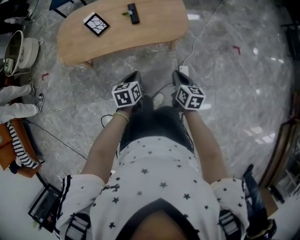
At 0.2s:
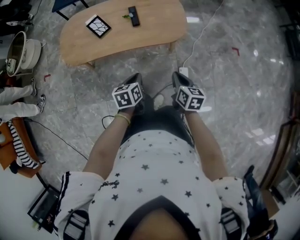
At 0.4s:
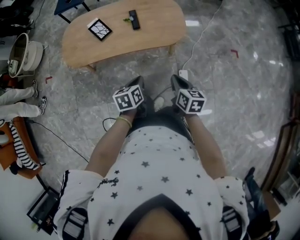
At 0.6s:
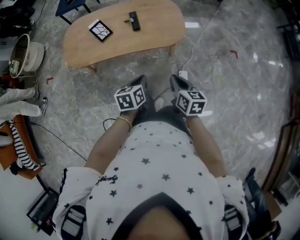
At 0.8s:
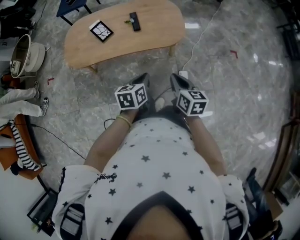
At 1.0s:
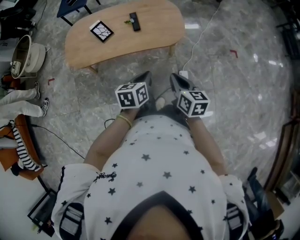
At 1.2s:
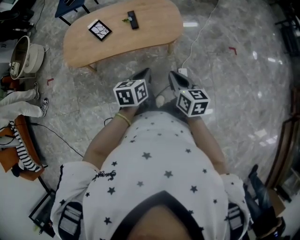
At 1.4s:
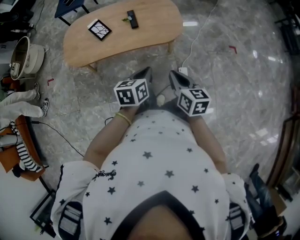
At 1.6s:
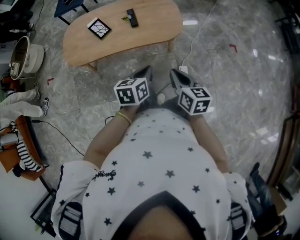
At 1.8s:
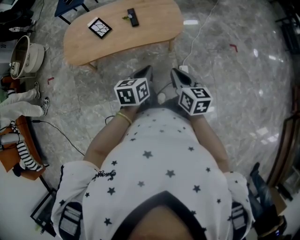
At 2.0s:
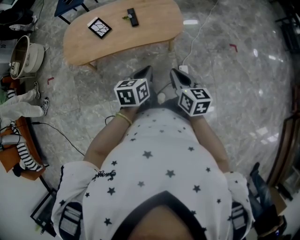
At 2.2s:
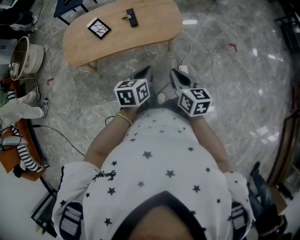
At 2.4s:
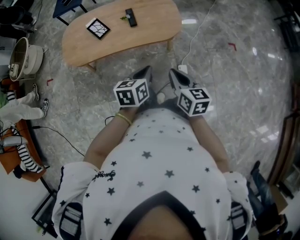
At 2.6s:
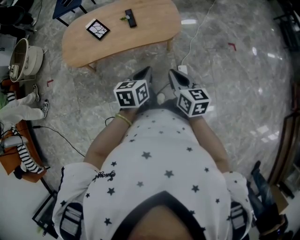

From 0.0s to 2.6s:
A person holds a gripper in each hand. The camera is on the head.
From 0.0s to 1.2s: The left gripper shifts roughly 15 cm upward and to the right; the right gripper moves upward, approximately 15 cm.
From 1.2s to 2.6s: The grippers move only a little.

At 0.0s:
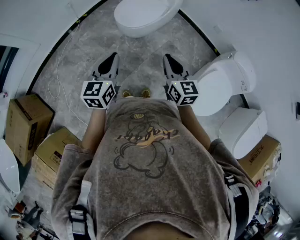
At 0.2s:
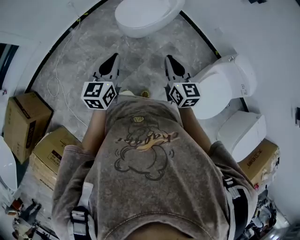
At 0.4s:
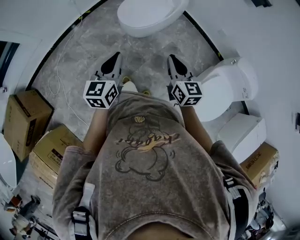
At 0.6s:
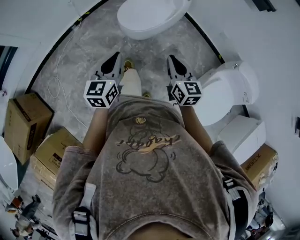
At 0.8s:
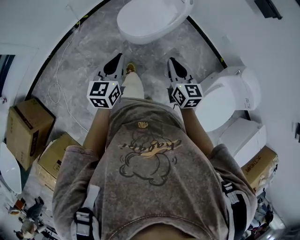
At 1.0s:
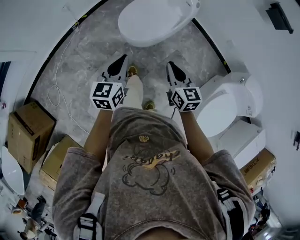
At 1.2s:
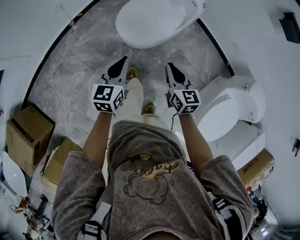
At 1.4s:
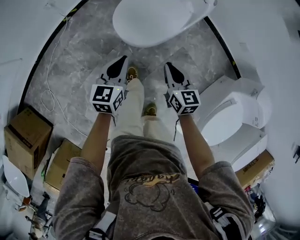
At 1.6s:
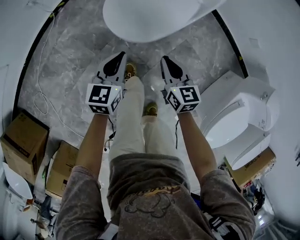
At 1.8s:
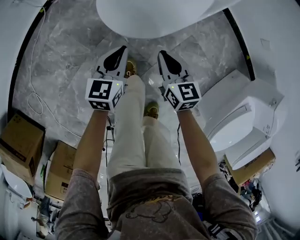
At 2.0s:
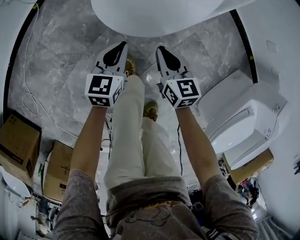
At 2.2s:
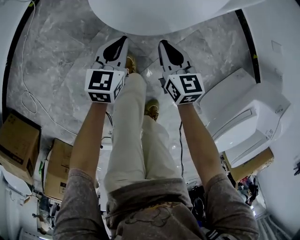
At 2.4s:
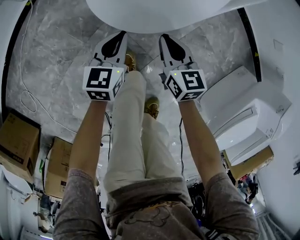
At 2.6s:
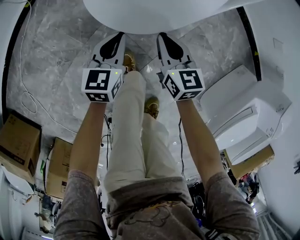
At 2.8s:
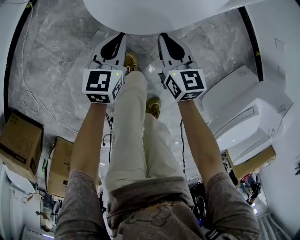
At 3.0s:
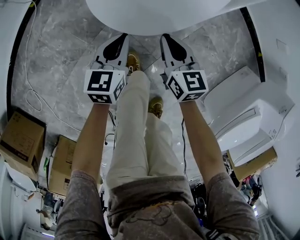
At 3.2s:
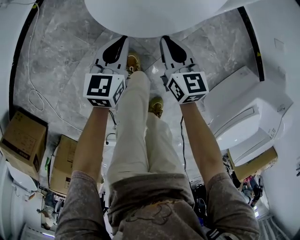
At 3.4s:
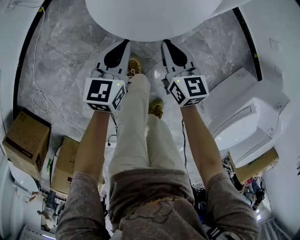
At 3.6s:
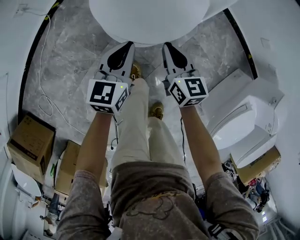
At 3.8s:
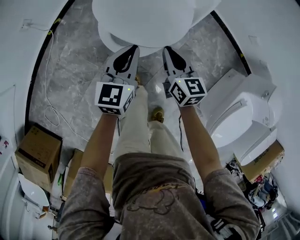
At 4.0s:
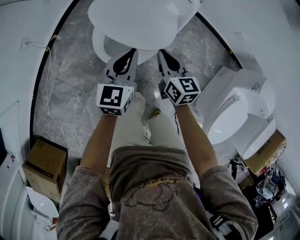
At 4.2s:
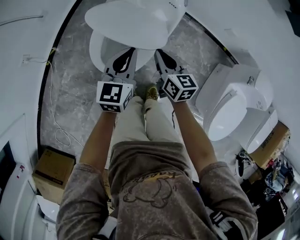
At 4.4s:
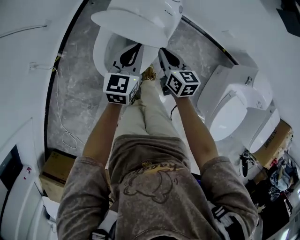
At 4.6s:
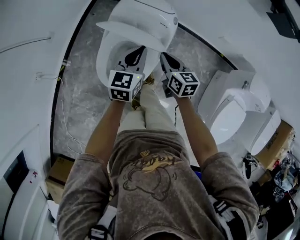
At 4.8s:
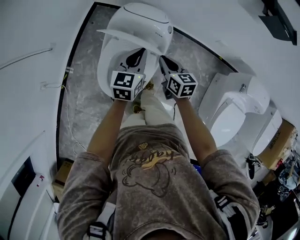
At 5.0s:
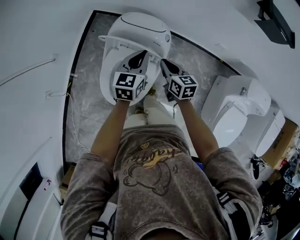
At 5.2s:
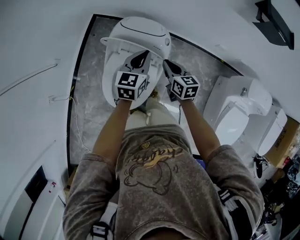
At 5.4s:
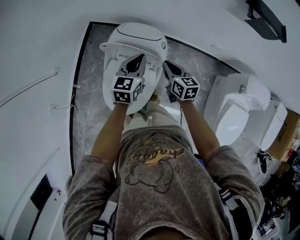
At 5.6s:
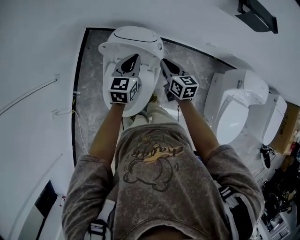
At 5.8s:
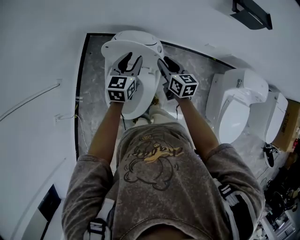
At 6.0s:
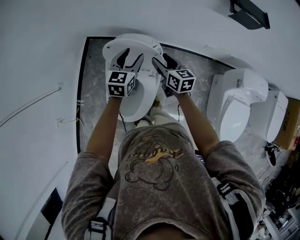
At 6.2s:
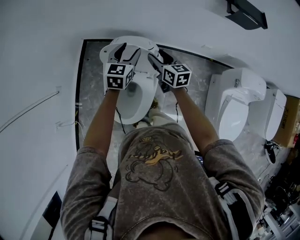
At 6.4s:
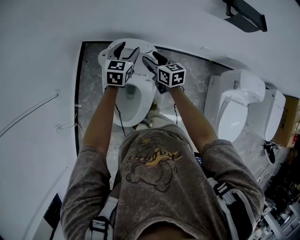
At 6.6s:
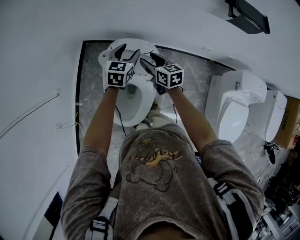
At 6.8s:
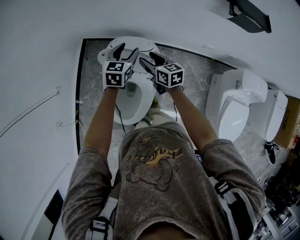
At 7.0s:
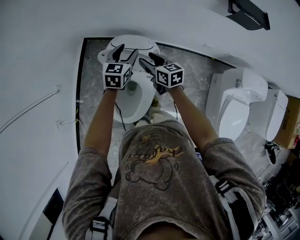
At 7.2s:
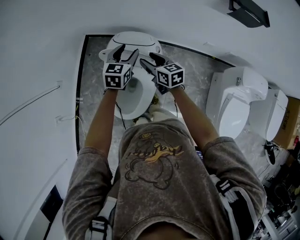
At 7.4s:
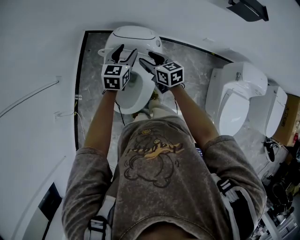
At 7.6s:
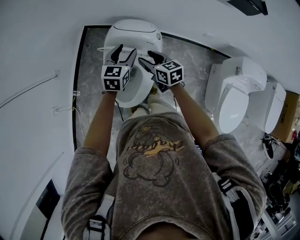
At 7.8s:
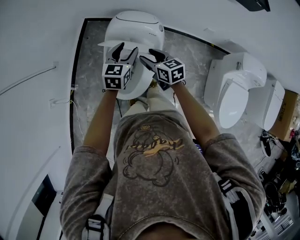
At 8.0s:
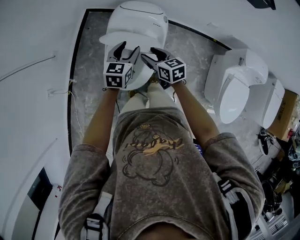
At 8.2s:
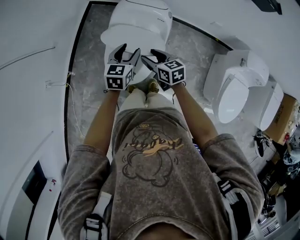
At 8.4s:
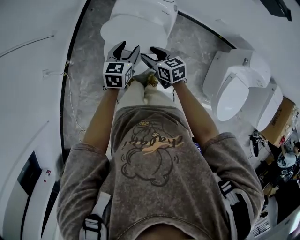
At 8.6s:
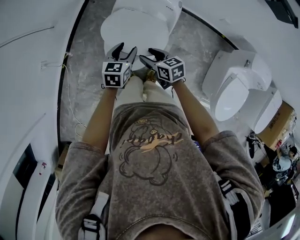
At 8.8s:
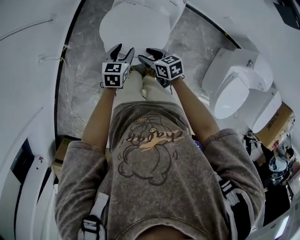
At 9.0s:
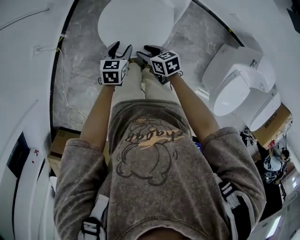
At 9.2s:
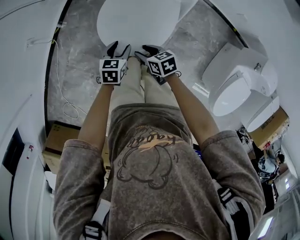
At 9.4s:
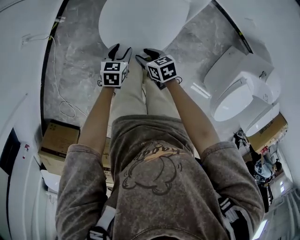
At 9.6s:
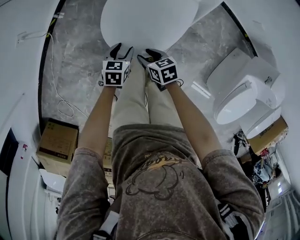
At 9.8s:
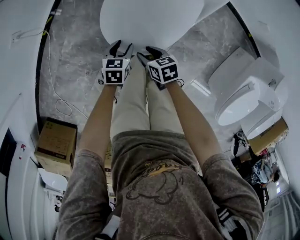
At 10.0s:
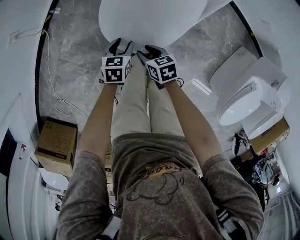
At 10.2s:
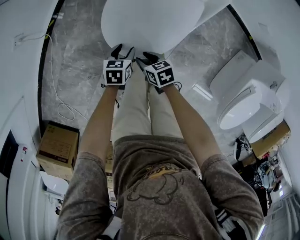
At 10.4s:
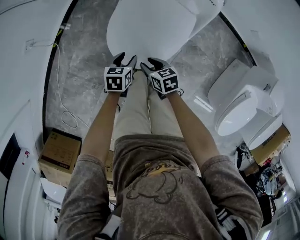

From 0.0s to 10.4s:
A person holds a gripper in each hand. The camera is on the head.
From 0.0s to 1.4s: The two grippers go some 40 cm forward and downward.
From 1.4s to 3.0s: The two grippers go some 25 cm downward.
From 3.0s to 4.4s: Both grippers move upward, forward and to the right, some 35 cm. The left gripper swivels approximately 30 degrees, while the right gripper turns by about 20 degrees.
From 4.4s to 6.0s: The grippers both shift forward and upward by roughly 20 cm. The left gripper opens. Meanwhile the right gripper opens up.
From 6.0s to 7.4s: The right gripper heads to the left, covering some 5 cm. Meanwhile the left gripper goes forward and returns, about 5 cm each way.
From 7.4s to 9.0s: Both grippers travel together backward, downward and to the left, about 35 cm. The left gripper changes its angle by some 30 degrees. Meanwhile the right gripper turns by approximately 30 degrees.
From 9.0s to 10.4s: The two grippers go approximately 15 cm downward.

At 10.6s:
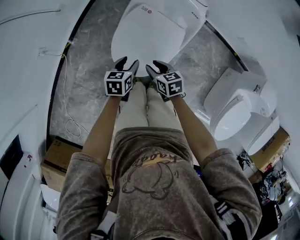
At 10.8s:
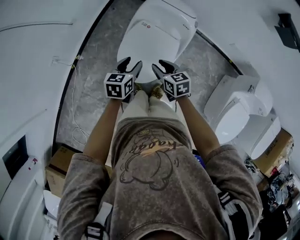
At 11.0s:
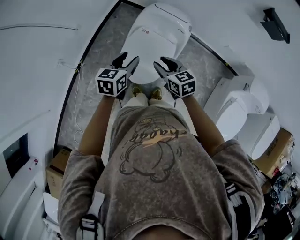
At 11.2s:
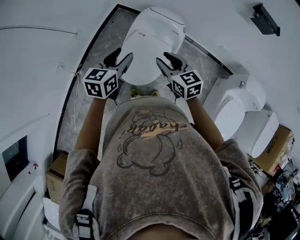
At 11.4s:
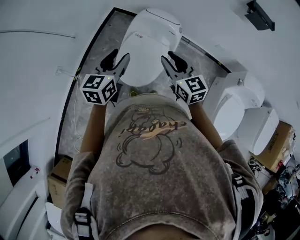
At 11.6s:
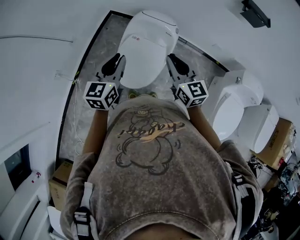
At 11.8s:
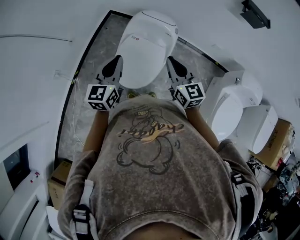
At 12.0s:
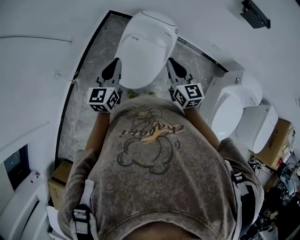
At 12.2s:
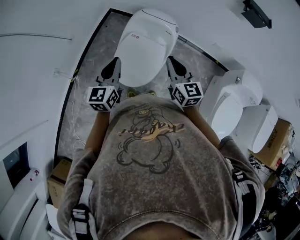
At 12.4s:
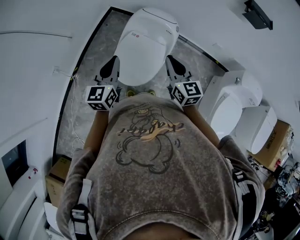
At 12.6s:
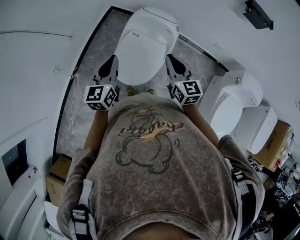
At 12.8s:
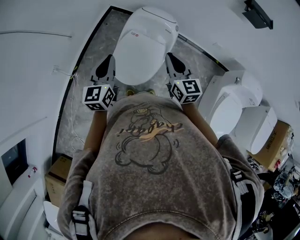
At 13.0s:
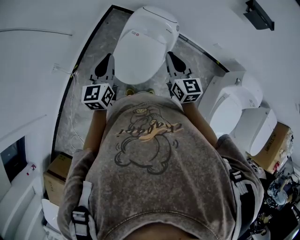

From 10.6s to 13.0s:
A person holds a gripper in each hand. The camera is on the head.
From 10.6s to 11.8s: Both grippers move upward, approximately 35 cm. The left gripper points its fingers roughly 40 degrees further upward, and closes up. The right gripper angles its fingers upward, by about 30 degrees, and closes its fingers.
From 11.8s to 13.0s: The grippers stay close to where they were, moving slightly.

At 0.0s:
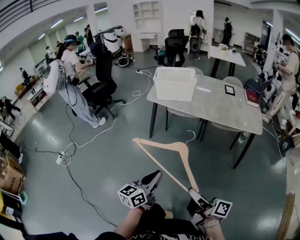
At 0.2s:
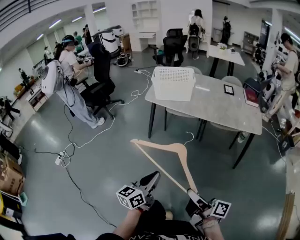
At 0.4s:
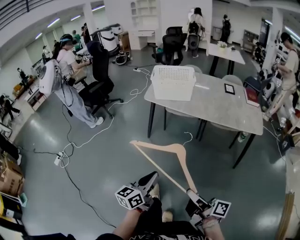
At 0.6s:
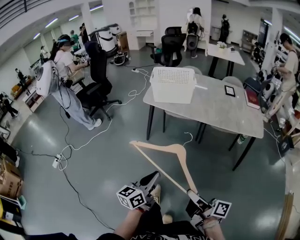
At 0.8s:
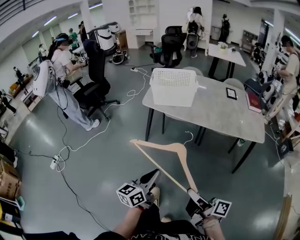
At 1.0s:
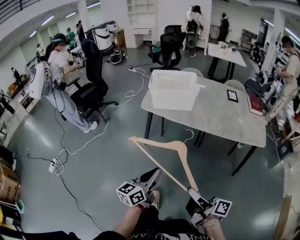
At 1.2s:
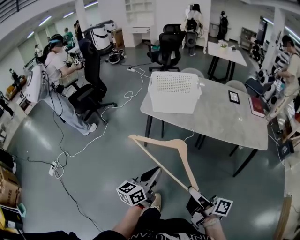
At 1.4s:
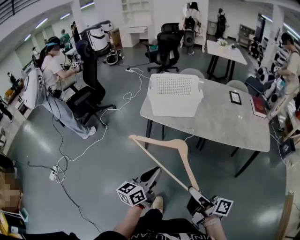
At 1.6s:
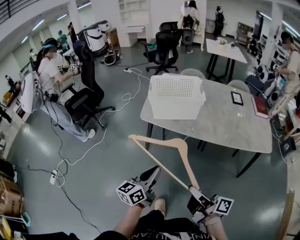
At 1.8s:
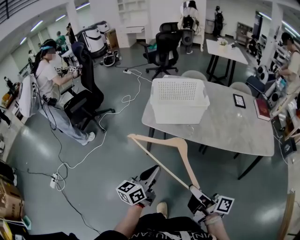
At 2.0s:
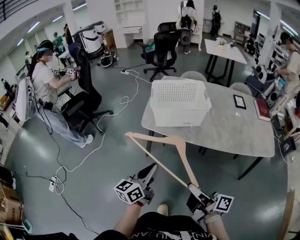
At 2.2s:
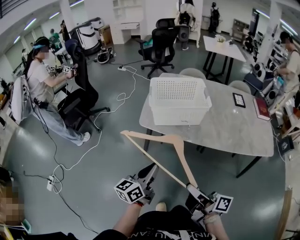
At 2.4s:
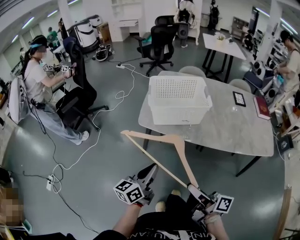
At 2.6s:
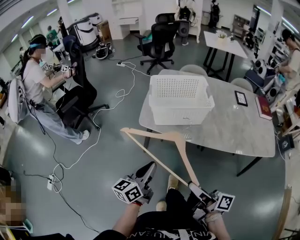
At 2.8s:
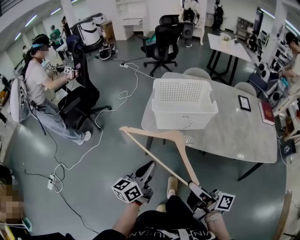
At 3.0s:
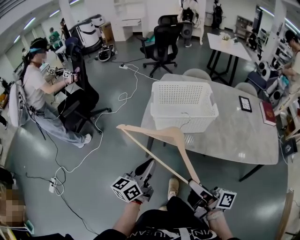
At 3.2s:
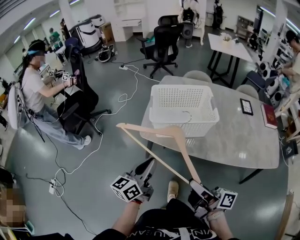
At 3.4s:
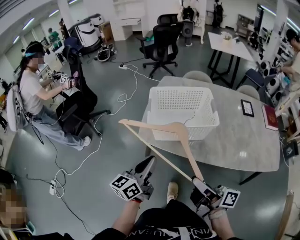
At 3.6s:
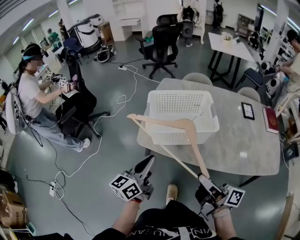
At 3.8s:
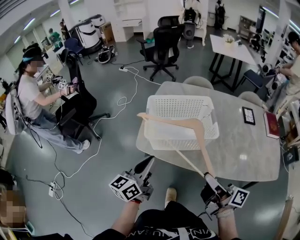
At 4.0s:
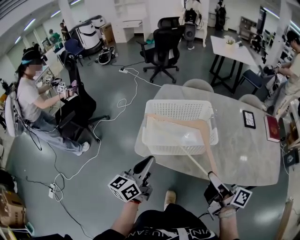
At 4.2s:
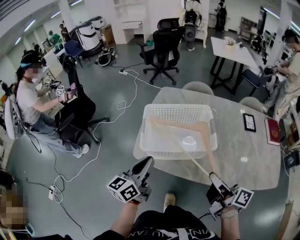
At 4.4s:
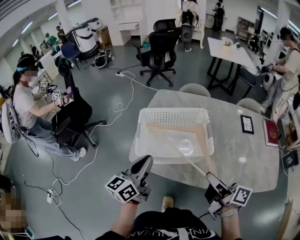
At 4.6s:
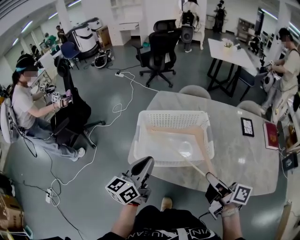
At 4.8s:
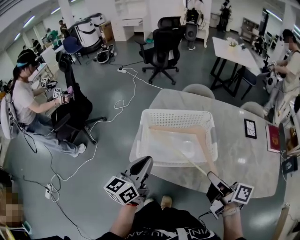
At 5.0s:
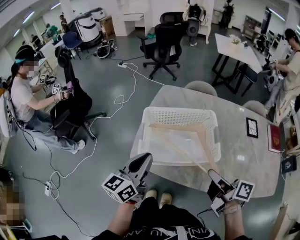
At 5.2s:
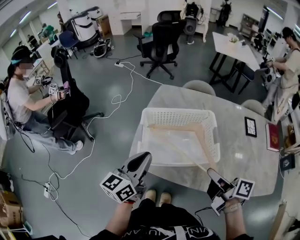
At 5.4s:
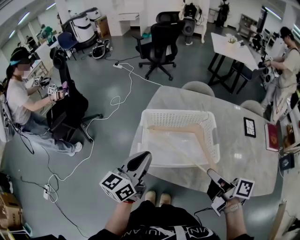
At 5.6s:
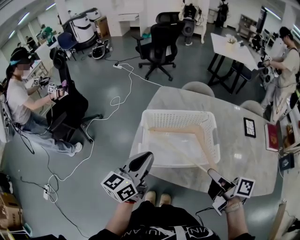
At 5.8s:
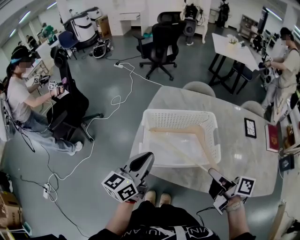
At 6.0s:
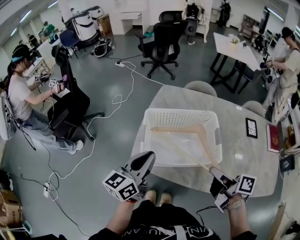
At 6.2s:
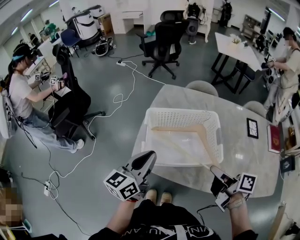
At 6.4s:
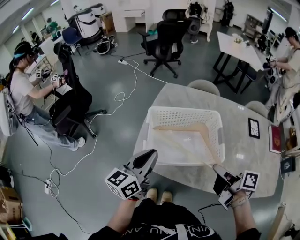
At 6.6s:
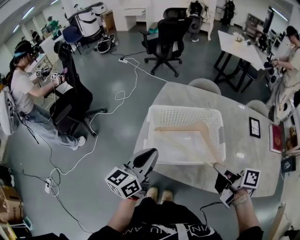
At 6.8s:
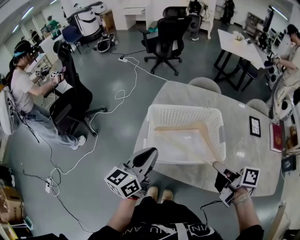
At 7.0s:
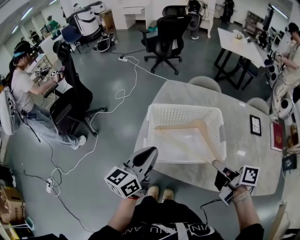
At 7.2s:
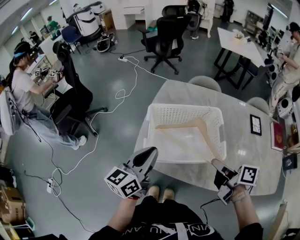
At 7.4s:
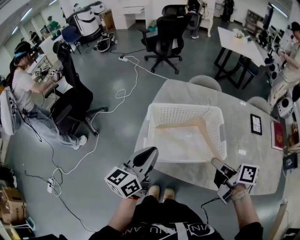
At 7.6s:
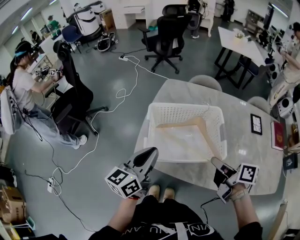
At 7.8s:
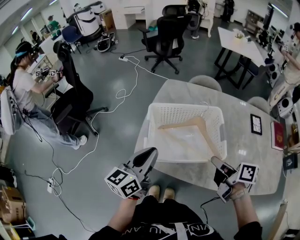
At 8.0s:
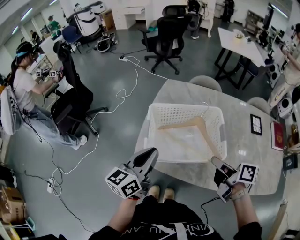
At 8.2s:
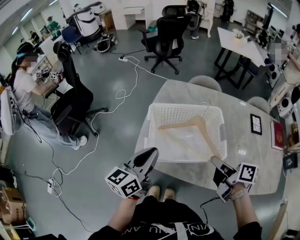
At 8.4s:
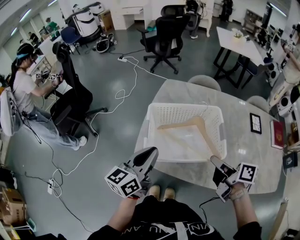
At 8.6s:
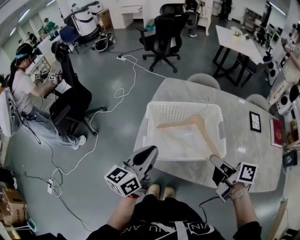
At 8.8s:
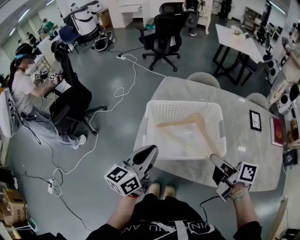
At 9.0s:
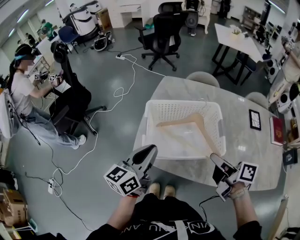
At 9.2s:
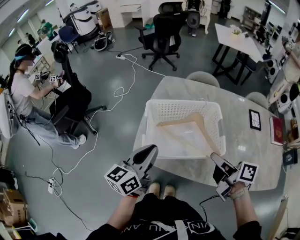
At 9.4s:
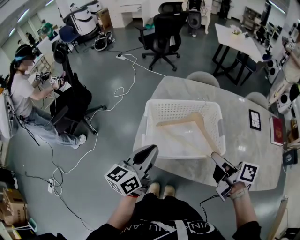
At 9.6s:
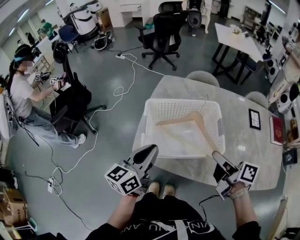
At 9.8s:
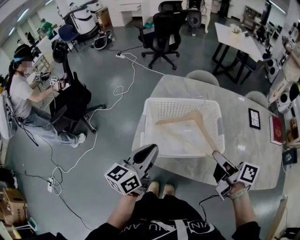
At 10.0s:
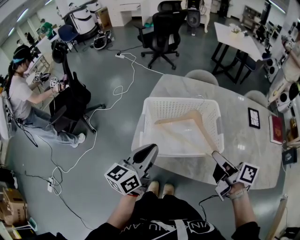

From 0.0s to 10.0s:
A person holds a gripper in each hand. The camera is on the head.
From 0.0s to 1.4s: The grippers both shift forward by roughly 25 cm.
From 1.4s to 2.8s: Both grippers move forward, roughly 20 cm.
From 2.8s to 4.2s: The right gripper shifts some 25 cm forward and to the right, while the left gripper is displaced forward by some 20 cm.
From 4.2s to 5.8s: Both grippers move forward, roughly 10 cm.
From 5.8s to 7.2s: The grippers stay close to where they were, moving slightly.
From 7.2s to 8.6s: Both grippers stay put.
From 8.6s to 10.0s: The grippers make only small movements.
